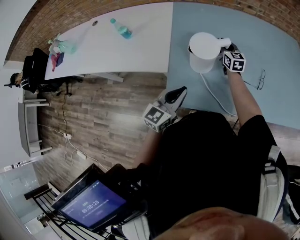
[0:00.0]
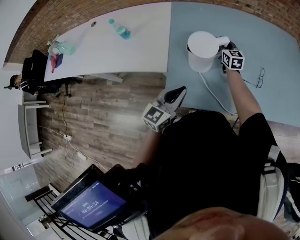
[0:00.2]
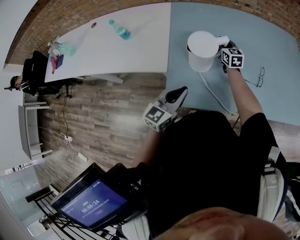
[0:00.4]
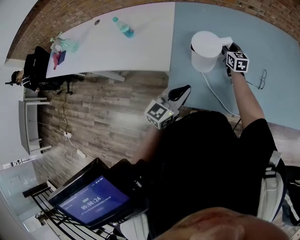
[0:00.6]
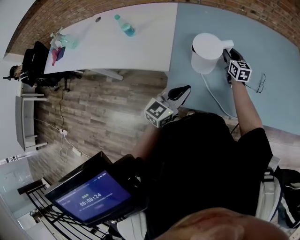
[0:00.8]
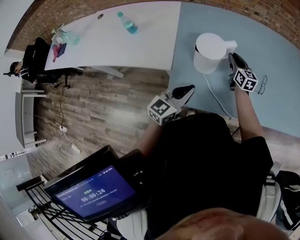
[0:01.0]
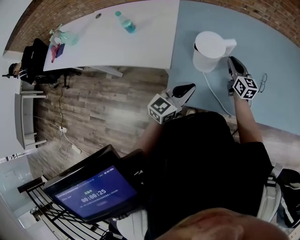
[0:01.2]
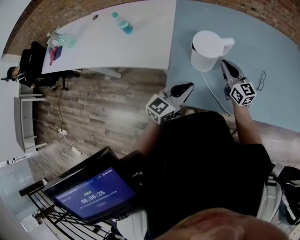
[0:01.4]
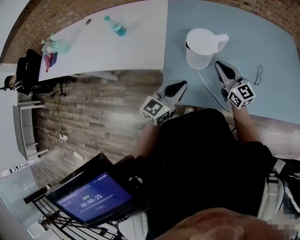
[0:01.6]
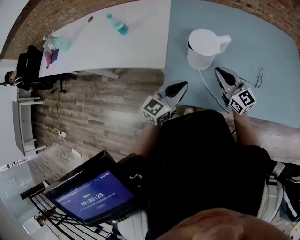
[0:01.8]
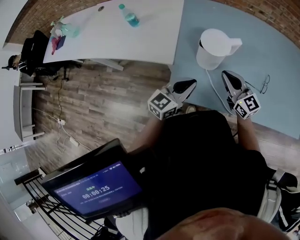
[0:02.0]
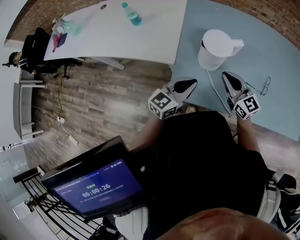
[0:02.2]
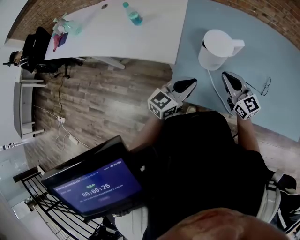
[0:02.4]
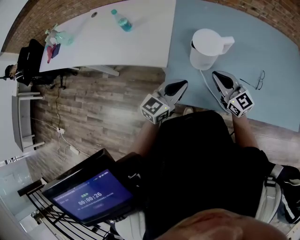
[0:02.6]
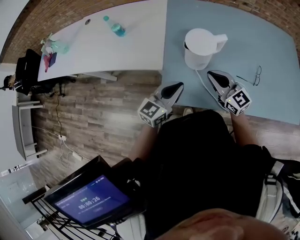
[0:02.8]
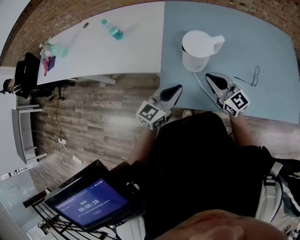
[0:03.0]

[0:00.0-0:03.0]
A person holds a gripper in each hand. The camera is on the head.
0:00.0 to 0:01.6: The right gripper moves backward and upward, some 20 cm, and swivels approximately 20 degrees.
0:01.6 to 0:03.0: The right gripper moves about 5 cm.

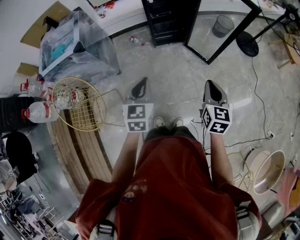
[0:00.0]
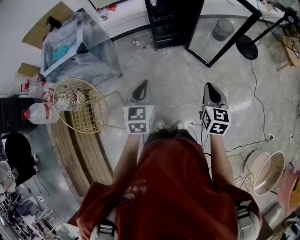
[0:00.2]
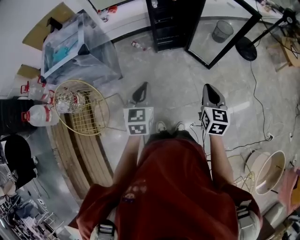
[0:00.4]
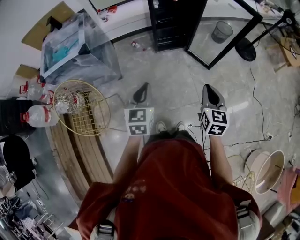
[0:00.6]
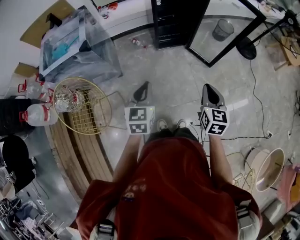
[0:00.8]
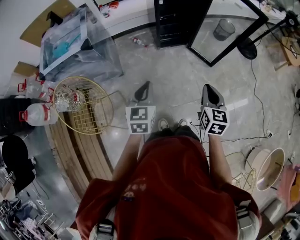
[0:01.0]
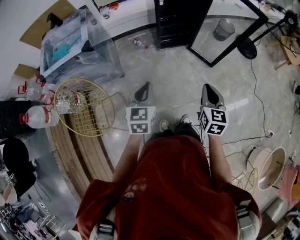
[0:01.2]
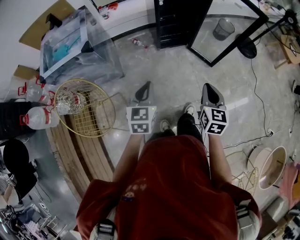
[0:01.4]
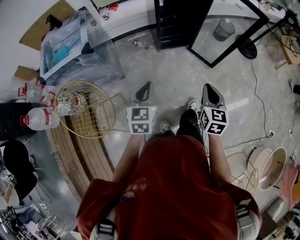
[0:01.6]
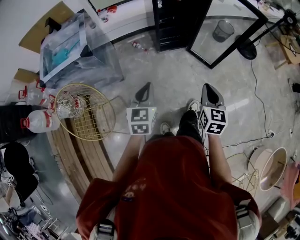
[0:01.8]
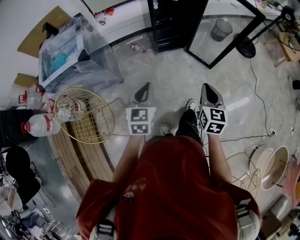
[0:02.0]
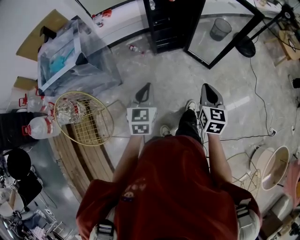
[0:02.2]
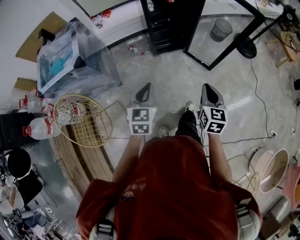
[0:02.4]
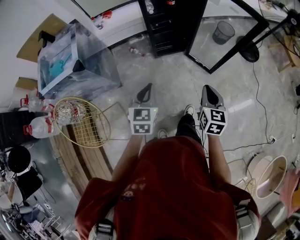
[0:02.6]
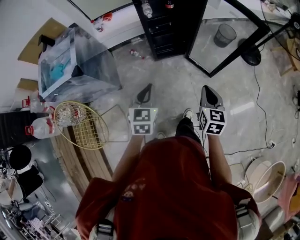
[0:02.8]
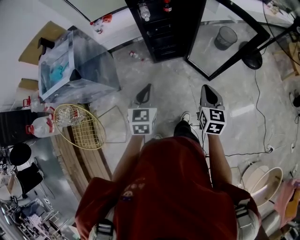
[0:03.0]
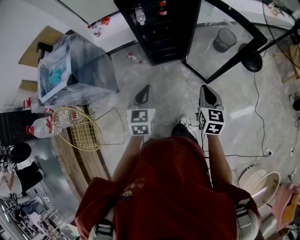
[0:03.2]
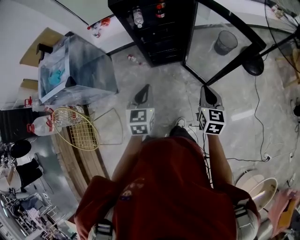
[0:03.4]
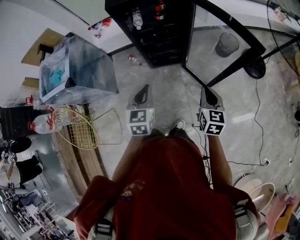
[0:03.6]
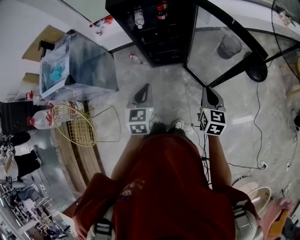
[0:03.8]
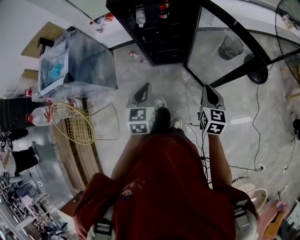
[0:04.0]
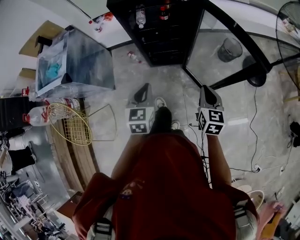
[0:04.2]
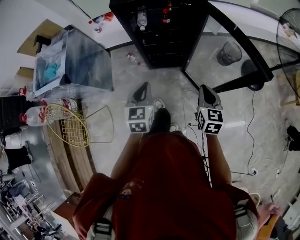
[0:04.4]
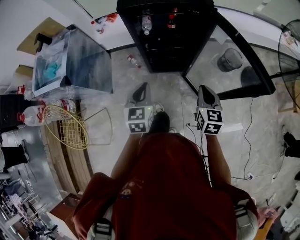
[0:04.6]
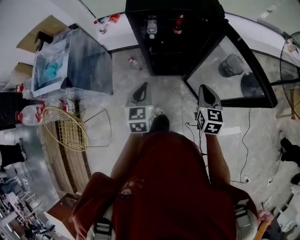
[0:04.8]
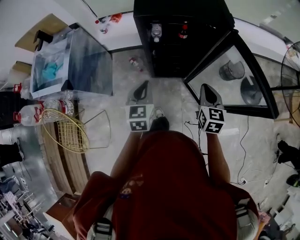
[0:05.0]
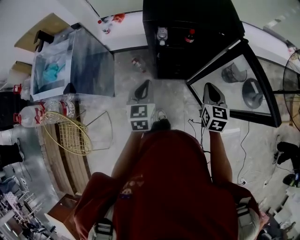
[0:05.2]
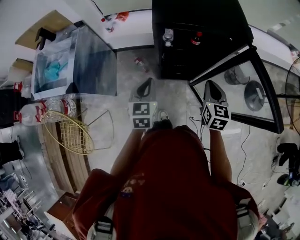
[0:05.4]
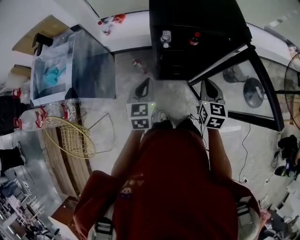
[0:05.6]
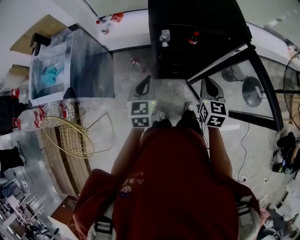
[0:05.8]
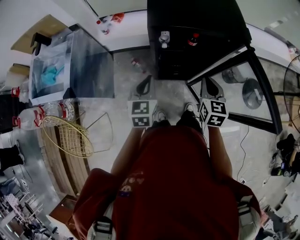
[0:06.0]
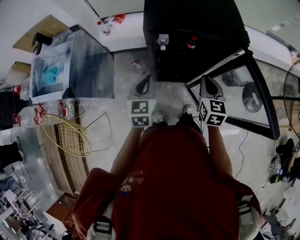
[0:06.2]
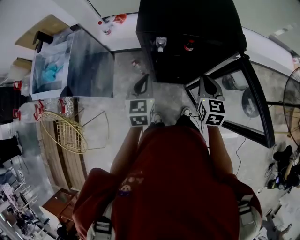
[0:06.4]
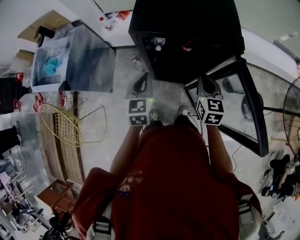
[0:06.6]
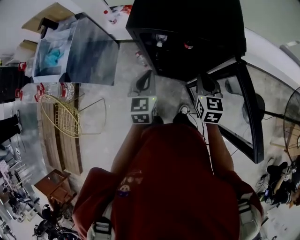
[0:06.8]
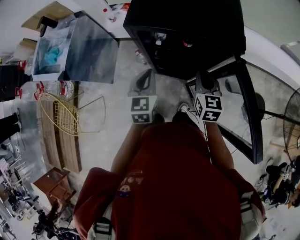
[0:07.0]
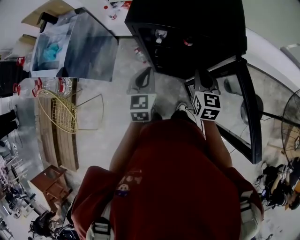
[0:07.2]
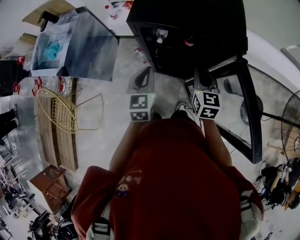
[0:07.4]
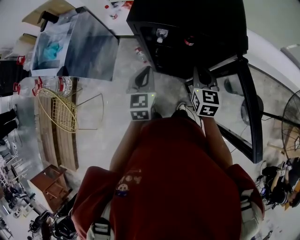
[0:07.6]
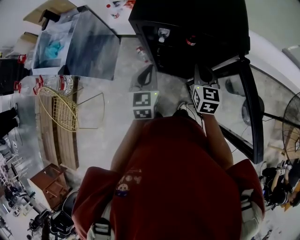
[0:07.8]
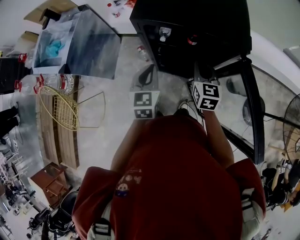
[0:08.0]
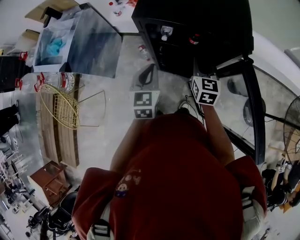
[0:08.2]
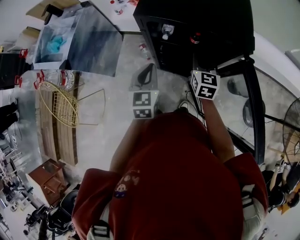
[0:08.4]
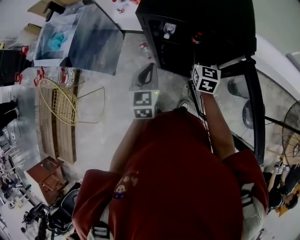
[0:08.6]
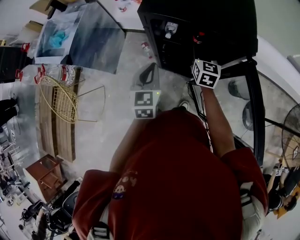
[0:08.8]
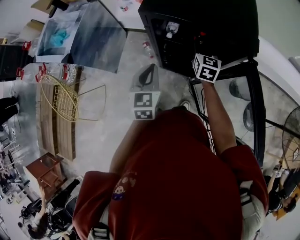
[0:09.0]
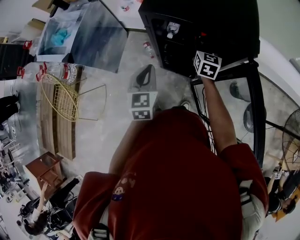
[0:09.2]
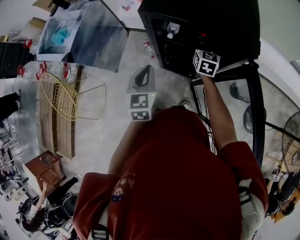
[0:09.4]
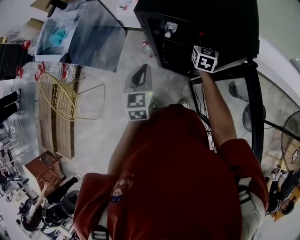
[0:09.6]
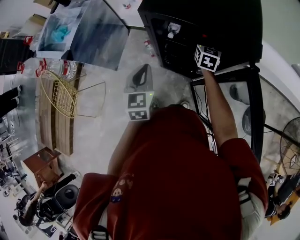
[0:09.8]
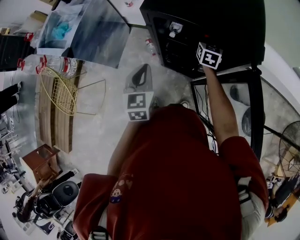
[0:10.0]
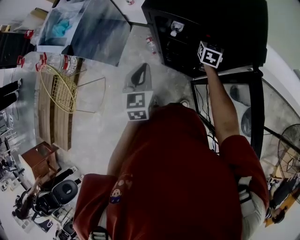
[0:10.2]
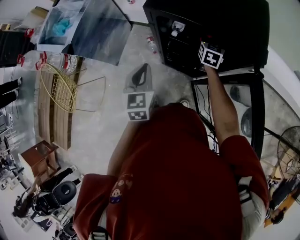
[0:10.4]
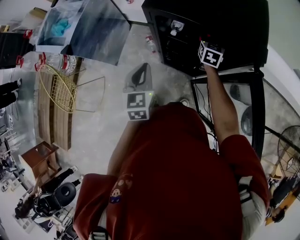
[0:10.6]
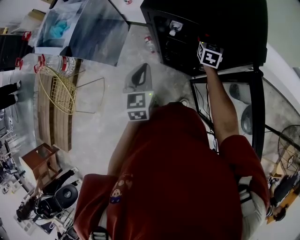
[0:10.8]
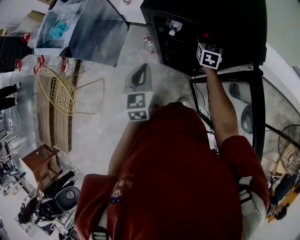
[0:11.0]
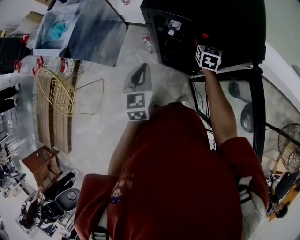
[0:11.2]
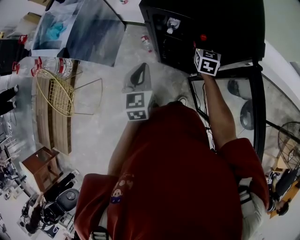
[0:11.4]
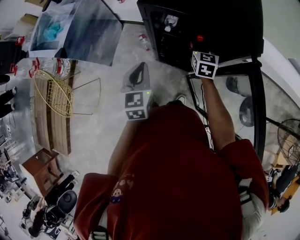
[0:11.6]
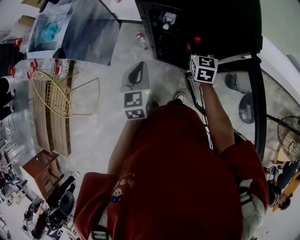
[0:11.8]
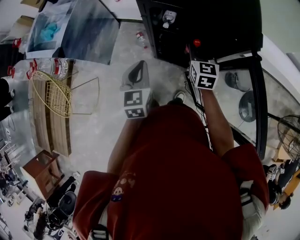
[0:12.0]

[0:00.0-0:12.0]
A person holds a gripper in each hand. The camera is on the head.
0:00.0 to 0:01.6: The grippers both shift to the left by approximately 10 cm.
0:01.6 to 0:03.0: Both grippers travel together forward and to the right, approximately 25 cm.
0:03.0 to 0:04.4: Both grippers move forward and to the right, roughly 20 cm.
0:04.4 to 0:06.0: Both grippers move forward and to the left, approximately 25 cm.
0:06.0 to 0:07.6: The left gripper moves to the right, some 10 cm; the right gripper goes some 10 cm forward and to the right.
0:07.6 to 0:09.0: The right gripper shifts some 10 cm forward, and opens its fingers.
0:09.0 to 0:10.4: The right gripper goes roughly 10 cm forward and downward.
0:10.4 to 0:12.0: The right gripper moves backward, about 15 cm.

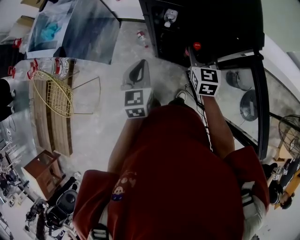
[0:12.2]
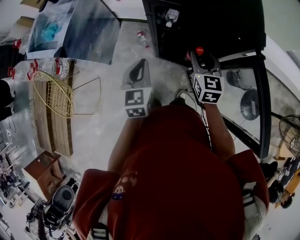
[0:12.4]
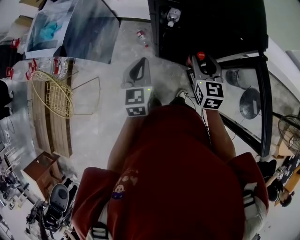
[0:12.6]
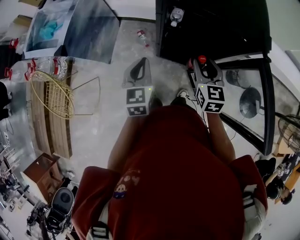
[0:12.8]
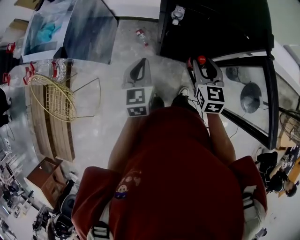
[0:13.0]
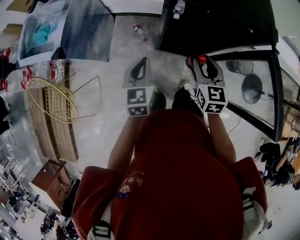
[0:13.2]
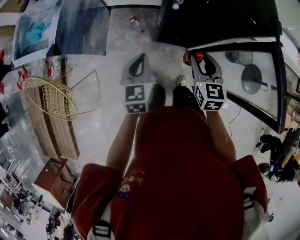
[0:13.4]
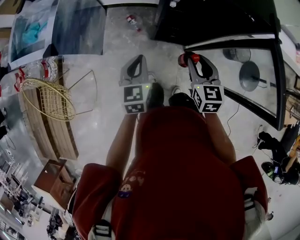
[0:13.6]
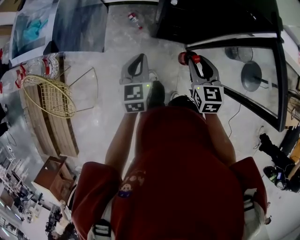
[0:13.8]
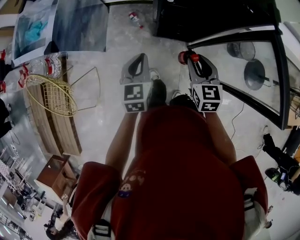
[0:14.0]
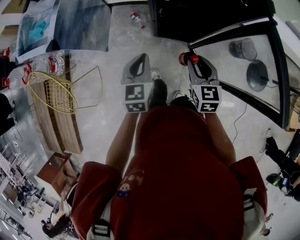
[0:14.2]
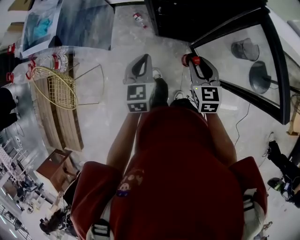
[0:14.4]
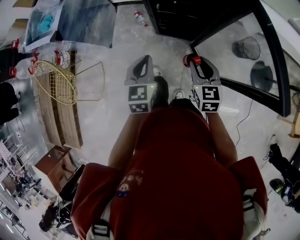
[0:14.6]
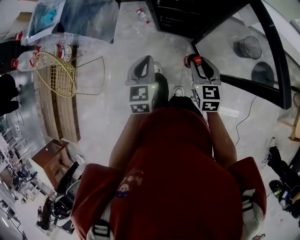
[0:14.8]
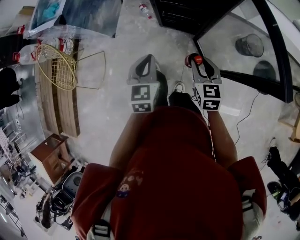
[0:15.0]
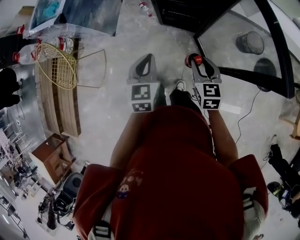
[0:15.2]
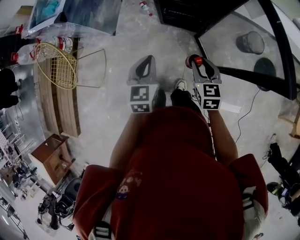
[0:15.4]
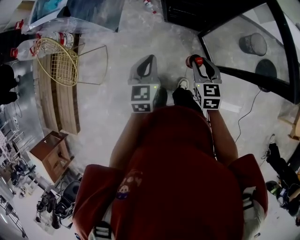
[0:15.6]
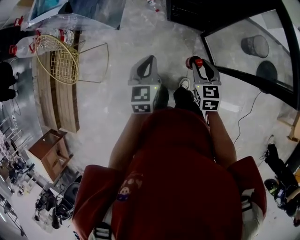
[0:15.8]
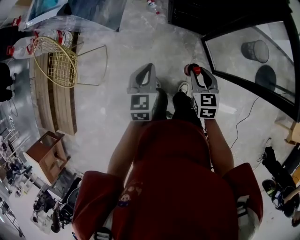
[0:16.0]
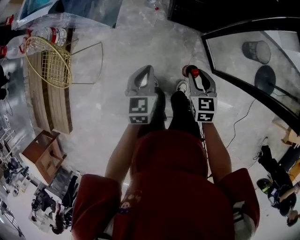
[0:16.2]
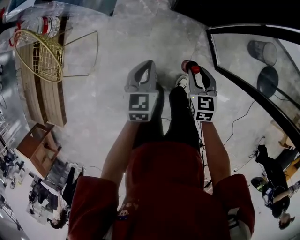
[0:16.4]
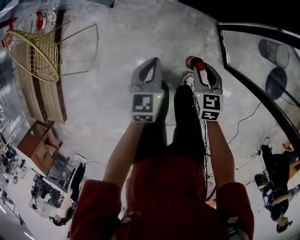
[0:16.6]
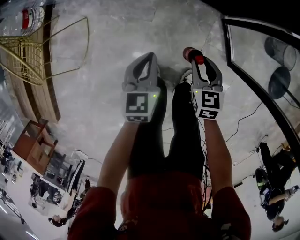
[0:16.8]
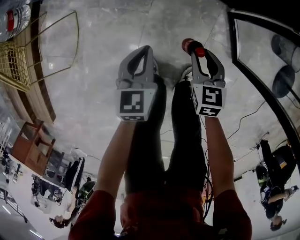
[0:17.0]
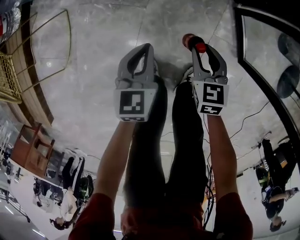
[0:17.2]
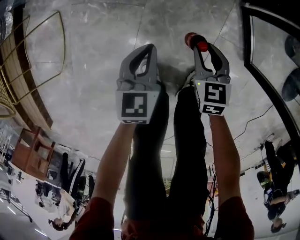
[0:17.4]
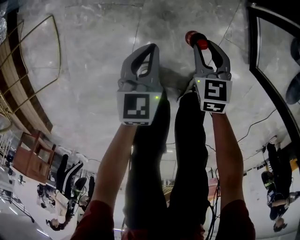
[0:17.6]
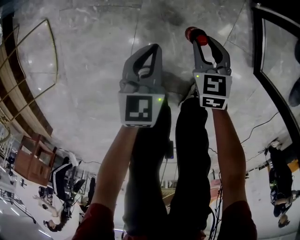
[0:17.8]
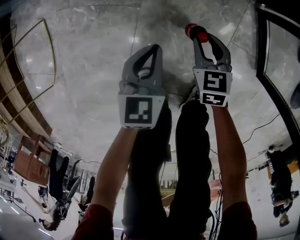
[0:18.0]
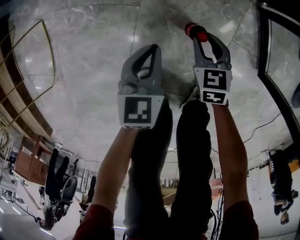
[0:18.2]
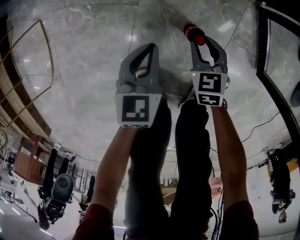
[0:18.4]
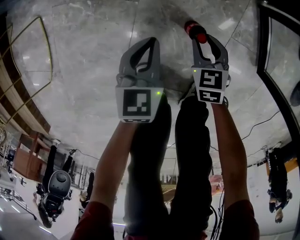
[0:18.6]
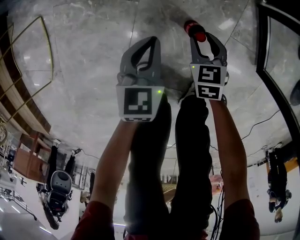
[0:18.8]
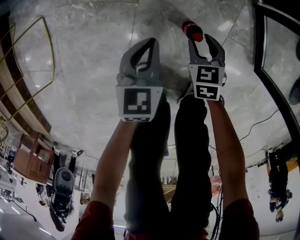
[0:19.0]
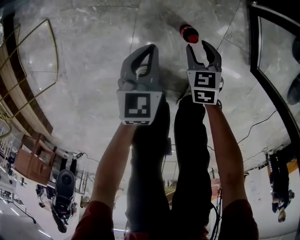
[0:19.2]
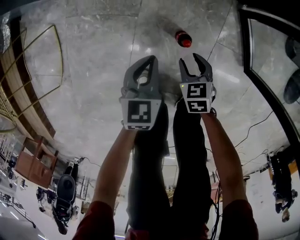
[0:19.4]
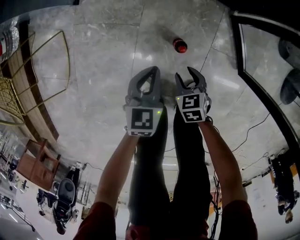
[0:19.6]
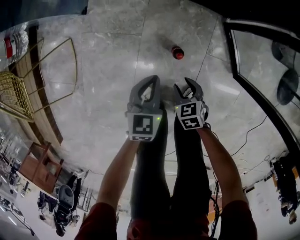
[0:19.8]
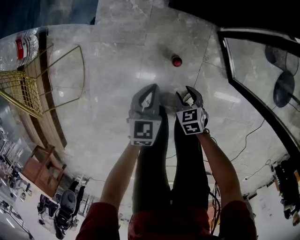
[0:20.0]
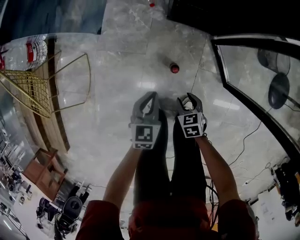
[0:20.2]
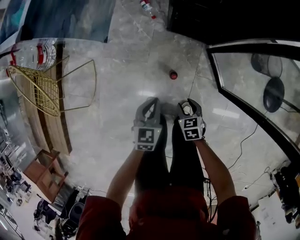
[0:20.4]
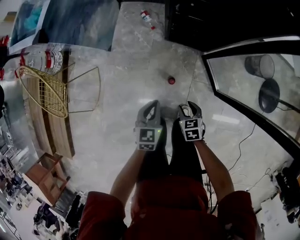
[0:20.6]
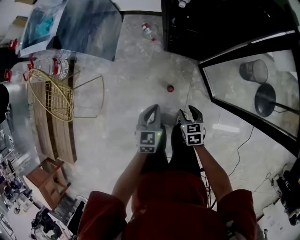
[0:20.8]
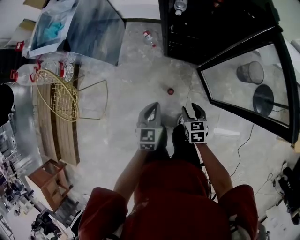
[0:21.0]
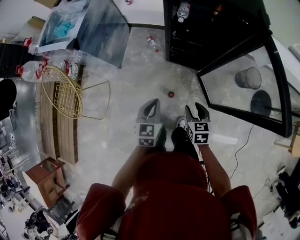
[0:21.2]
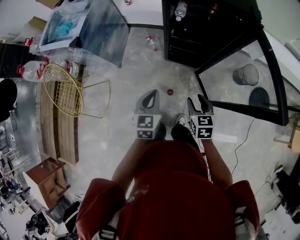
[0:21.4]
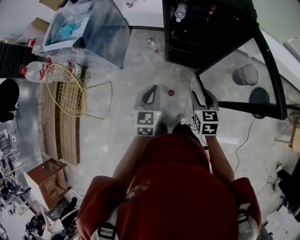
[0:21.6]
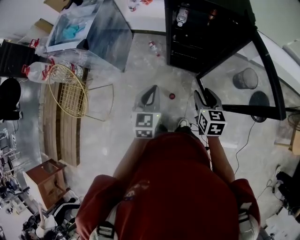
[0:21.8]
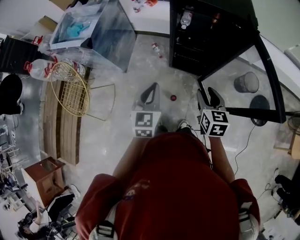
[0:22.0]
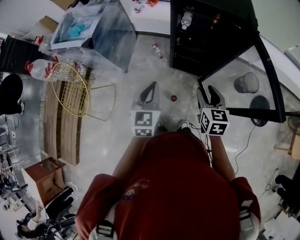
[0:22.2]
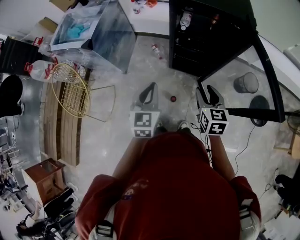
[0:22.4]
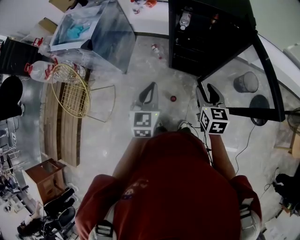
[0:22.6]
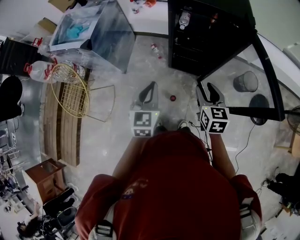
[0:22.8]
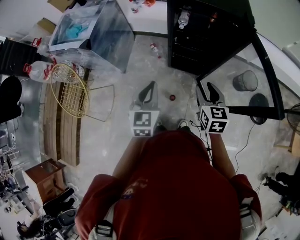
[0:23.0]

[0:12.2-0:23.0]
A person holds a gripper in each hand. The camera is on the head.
0:12.2 to 0:13.8: The right gripper goes some 15 cm backward and to the left. The left gripper goes roughly 10 cm to the left and downward.
0:13.8 to 0:15.2: Both grippers travel together backward and to the right, approximately 25 cm.
0:15.2 to 0:16.8: Both grippers move downward and to the left, some 35 cm.
0:16.8 to 0:18.4: The two grippers go about 40 cm downward.
0:18.4 to 0:20.0: The two grippers go roughly 25 cm upward.
0:20.0 to 0:21.4: Both grippers move upward, about 50 cm. The right gripper changes its angle by some 30 degrees.
0:21.4 to 0:23.0: Both grippers travel together upward, roughly 10 cm.
